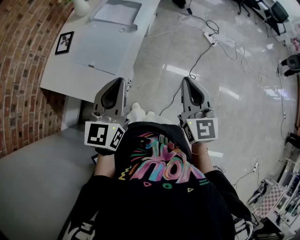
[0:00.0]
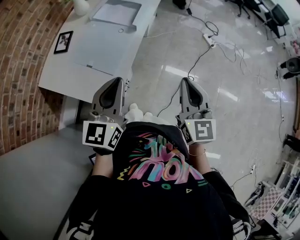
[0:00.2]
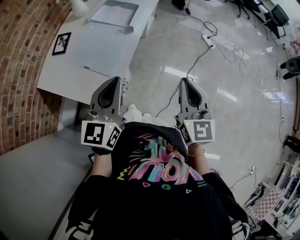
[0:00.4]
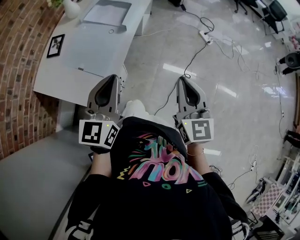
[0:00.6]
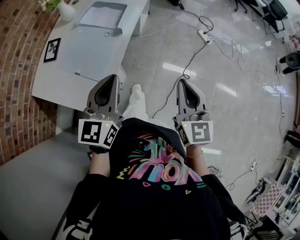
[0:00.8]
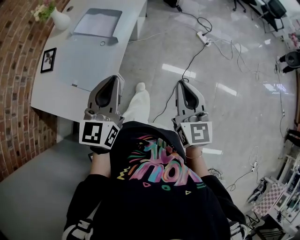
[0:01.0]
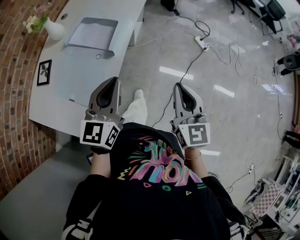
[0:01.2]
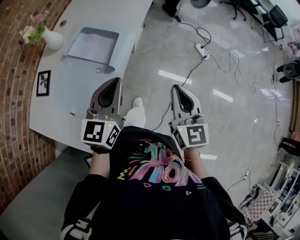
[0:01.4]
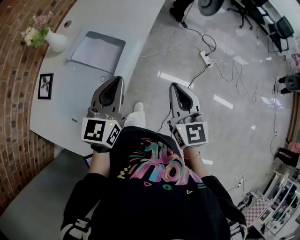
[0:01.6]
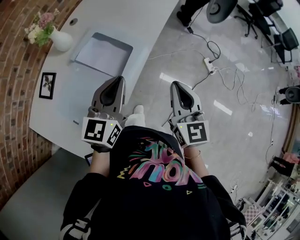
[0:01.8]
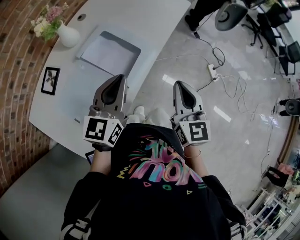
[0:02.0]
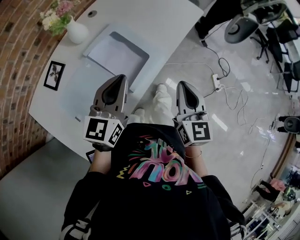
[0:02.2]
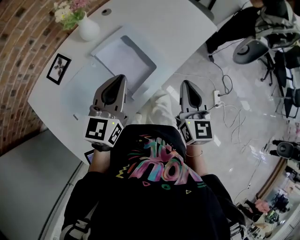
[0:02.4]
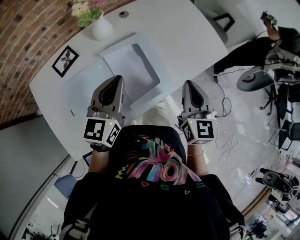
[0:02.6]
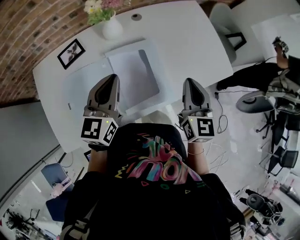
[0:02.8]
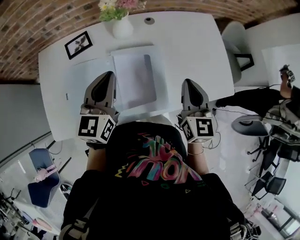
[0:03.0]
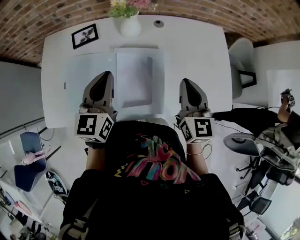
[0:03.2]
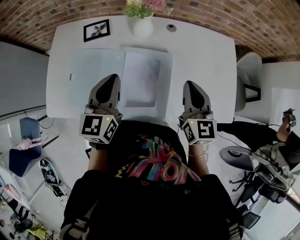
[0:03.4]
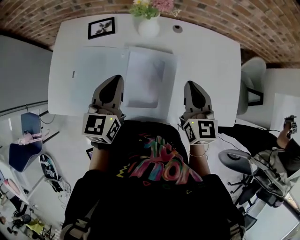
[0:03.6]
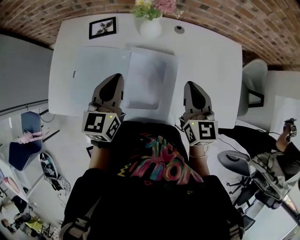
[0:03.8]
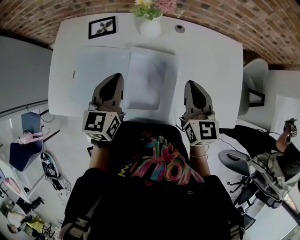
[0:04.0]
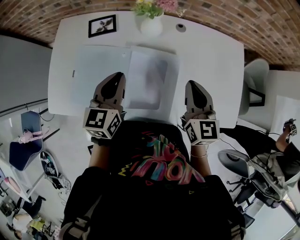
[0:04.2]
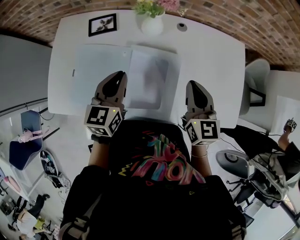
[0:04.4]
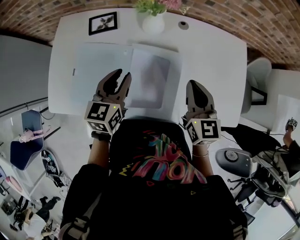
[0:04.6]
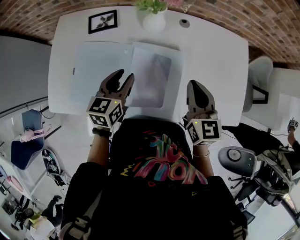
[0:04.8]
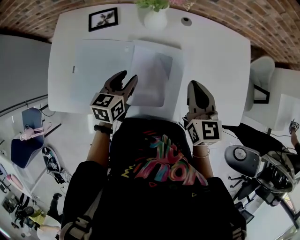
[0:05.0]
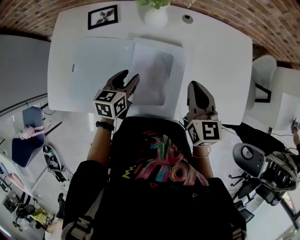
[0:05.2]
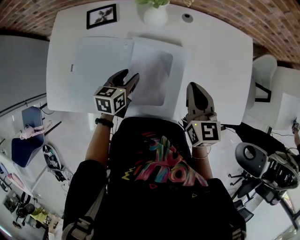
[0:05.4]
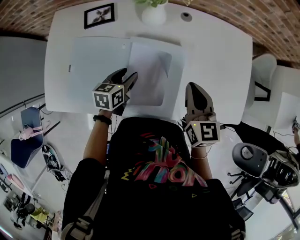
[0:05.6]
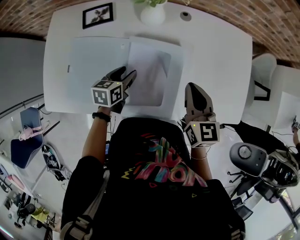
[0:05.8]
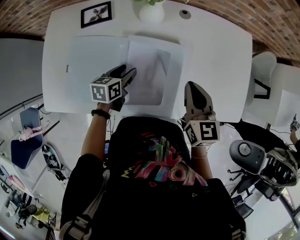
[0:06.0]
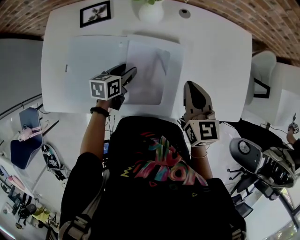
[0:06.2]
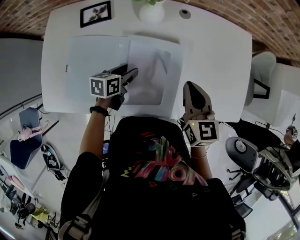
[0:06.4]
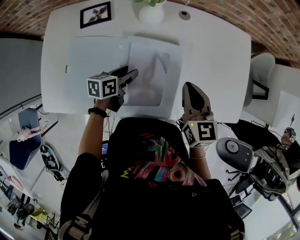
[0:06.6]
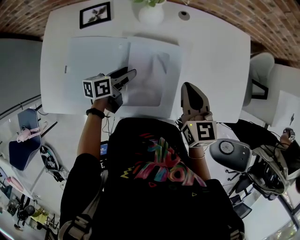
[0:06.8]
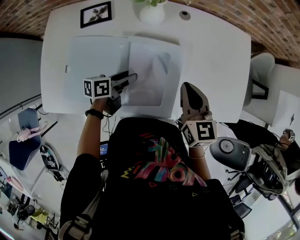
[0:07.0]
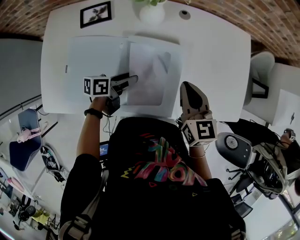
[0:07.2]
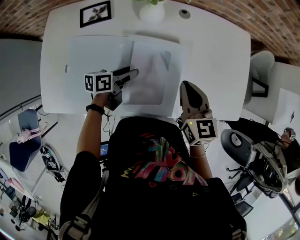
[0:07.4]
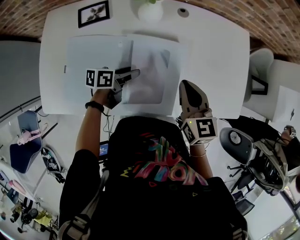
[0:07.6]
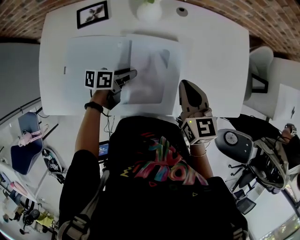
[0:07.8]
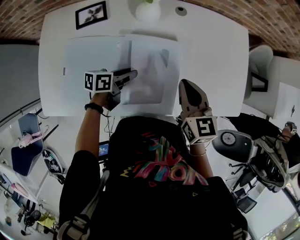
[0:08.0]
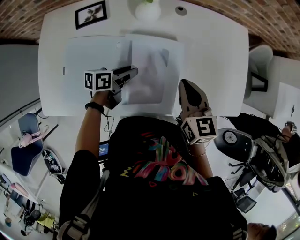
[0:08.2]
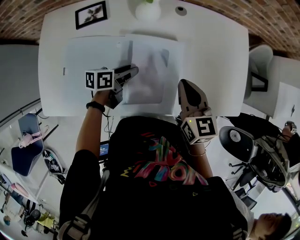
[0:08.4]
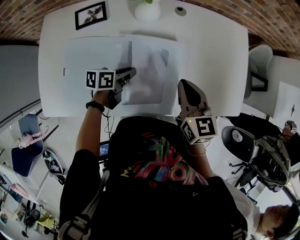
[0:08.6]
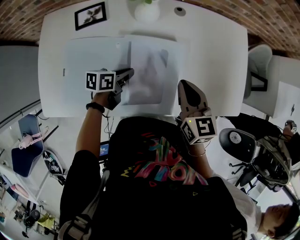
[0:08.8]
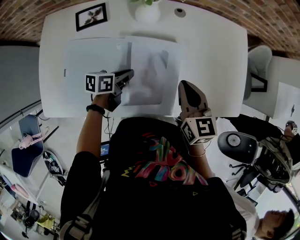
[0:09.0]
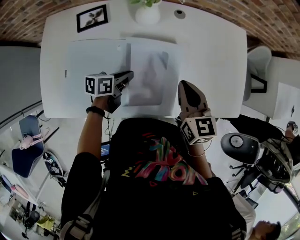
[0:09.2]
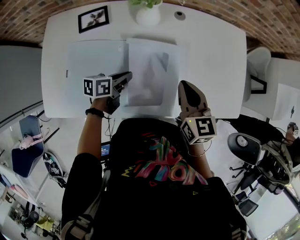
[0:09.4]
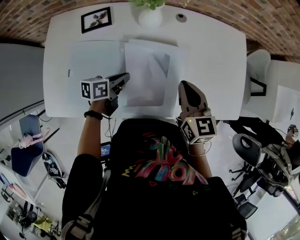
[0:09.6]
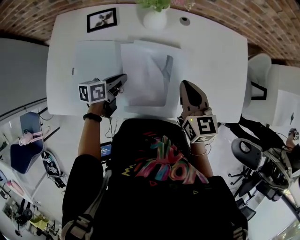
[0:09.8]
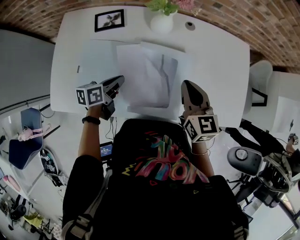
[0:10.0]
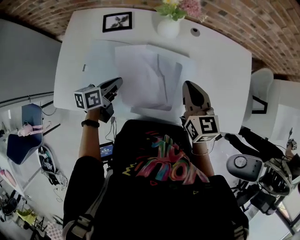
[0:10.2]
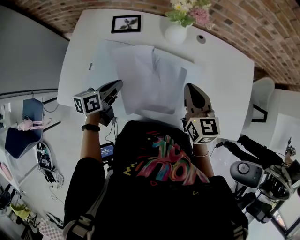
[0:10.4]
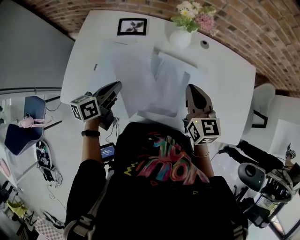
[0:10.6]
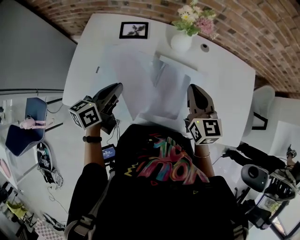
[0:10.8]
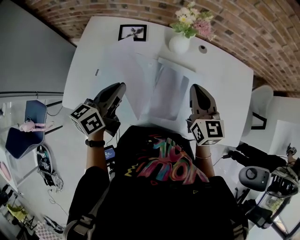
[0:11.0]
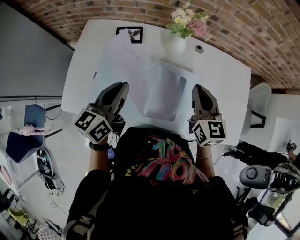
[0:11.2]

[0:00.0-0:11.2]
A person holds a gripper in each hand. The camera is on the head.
0:00.0 to 0:01.6: The grippers both shift forward by approximately 35 cm.
0:01.6 to 0:03.2: The left gripper moves roughly 20 cm, and changes its angle by about 70 degrees, while the right gripper shifts by about 40 cm, and changes its angle by about 60 degrees.
0:03.2 to 0:04.8: The left gripper is displaced downward by approximately 10 cm, and opens. Meanwhile the right gripper goes roughly 5 cm forward.
0:04.8 to 0:06.4: The left gripper moves downward, roughly 15 cm, and turns by roughly 30 degrees.
0:08.0 to 0:09.6: The left gripper closes up.
0:09.6 to 0:11.2: The right gripper travels upward and to the left by roughly 10 cm. Meanwhile the left gripper travels upward and to the left by roughly 25 cm, and swivels about 40 degrees.

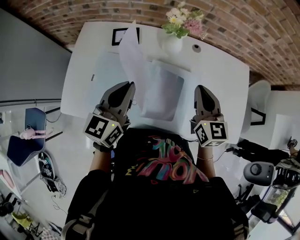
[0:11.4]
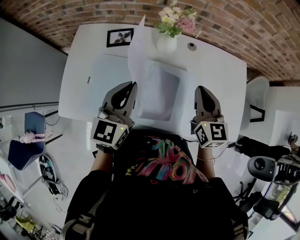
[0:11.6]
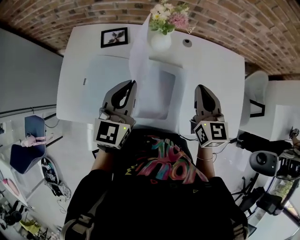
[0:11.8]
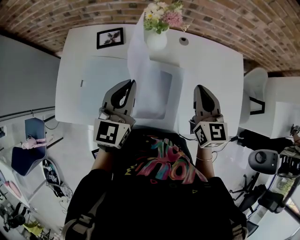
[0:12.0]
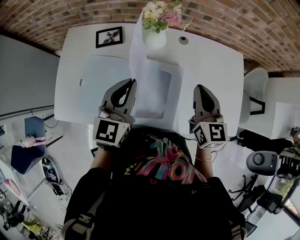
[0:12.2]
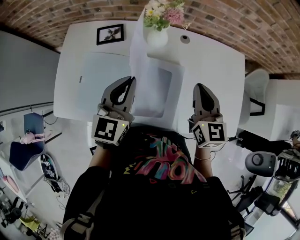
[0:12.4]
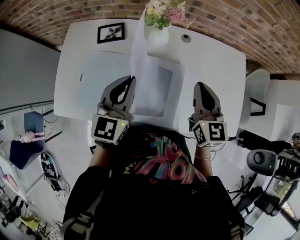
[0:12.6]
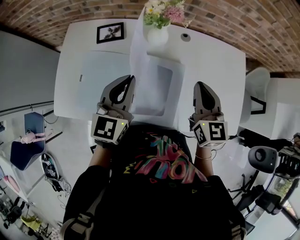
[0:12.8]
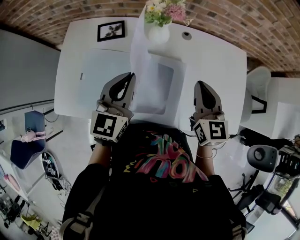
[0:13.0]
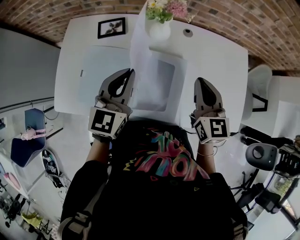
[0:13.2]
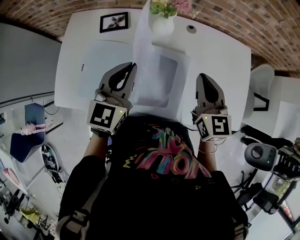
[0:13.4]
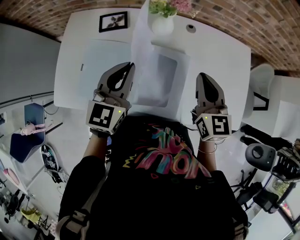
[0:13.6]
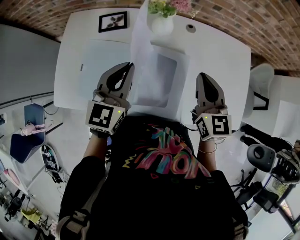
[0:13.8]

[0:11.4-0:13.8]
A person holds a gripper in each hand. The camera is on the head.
0:11.4 to 0:12.6: Both grippers travel together to the right, roughly 5 cm.
0:12.6 to 0:13.8: There are only small adjustments of the grippers.

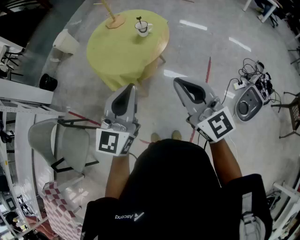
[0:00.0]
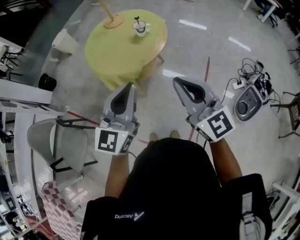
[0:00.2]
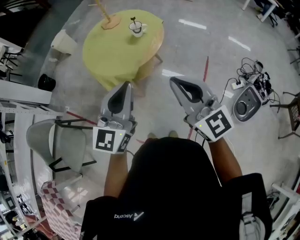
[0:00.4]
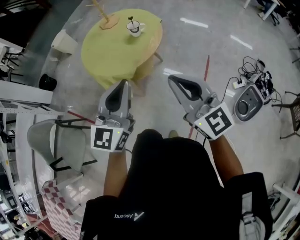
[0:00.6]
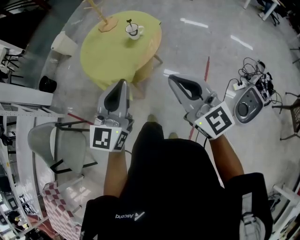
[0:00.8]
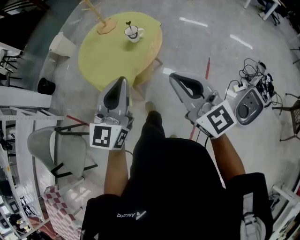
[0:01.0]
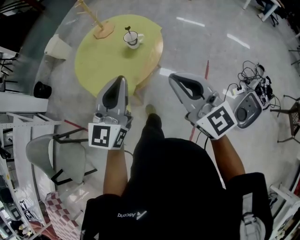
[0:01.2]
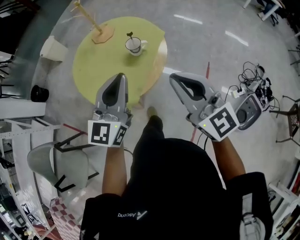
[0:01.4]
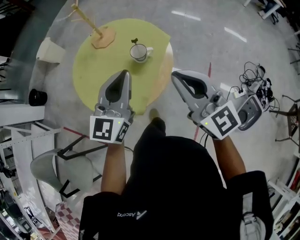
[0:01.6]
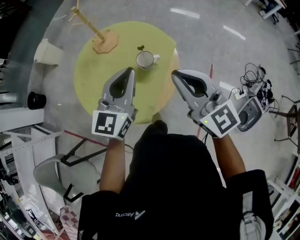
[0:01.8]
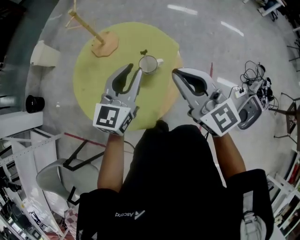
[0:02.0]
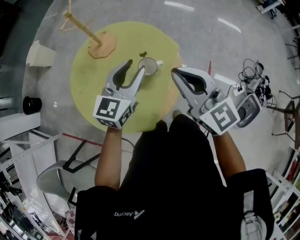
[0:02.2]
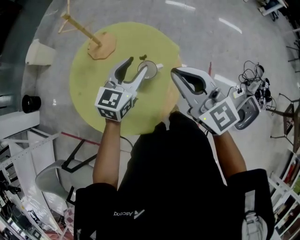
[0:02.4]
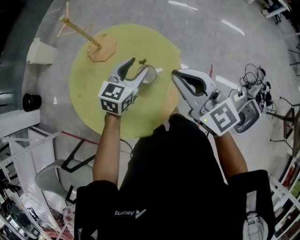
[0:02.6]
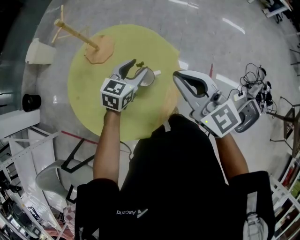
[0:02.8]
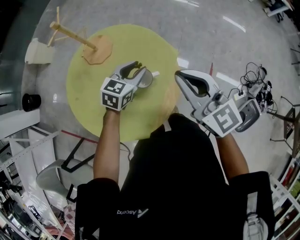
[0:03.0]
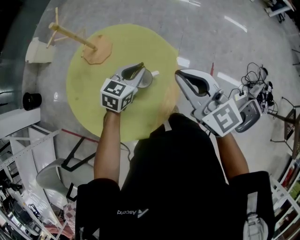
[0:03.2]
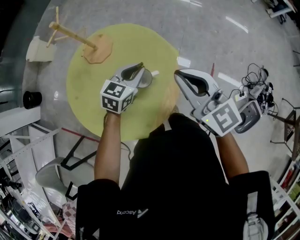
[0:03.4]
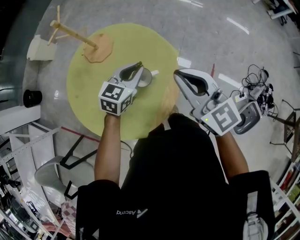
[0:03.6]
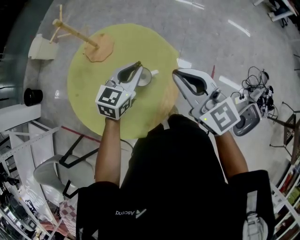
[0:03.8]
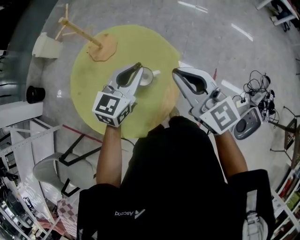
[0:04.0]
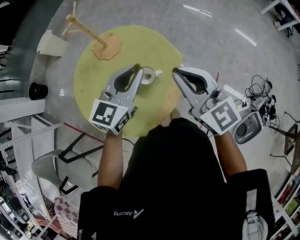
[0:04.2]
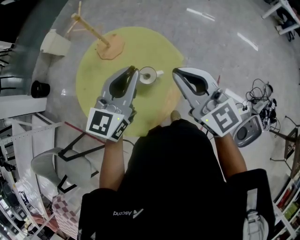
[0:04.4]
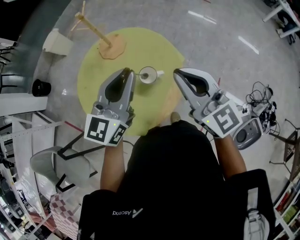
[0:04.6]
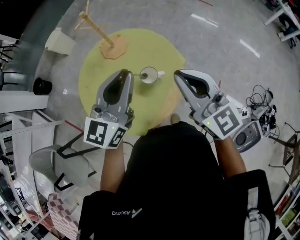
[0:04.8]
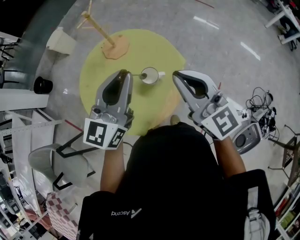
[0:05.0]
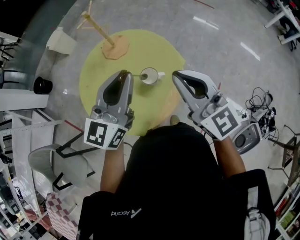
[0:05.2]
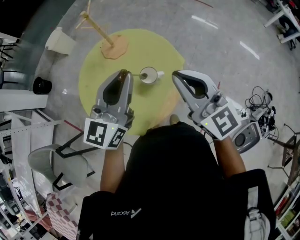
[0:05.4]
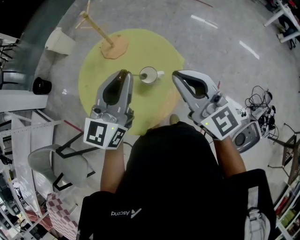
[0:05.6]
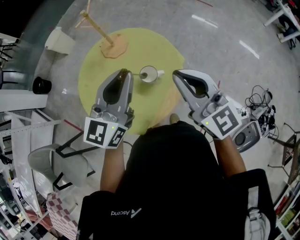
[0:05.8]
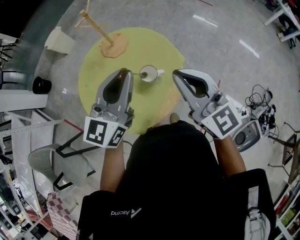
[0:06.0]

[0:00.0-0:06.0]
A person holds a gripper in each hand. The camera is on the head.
0:00.0 to 0:01.6: The grippers both shift forward by about 35 cm.
0:01.6 to 0:03.0: The left gripper moves forward and downward, approximately 30 cm, angles its fingers downward, by roughly 30 degrees, and opens its fingers, while the right gripper goes about 20 cm forward.
0:03.0 to 0:04.4: The left gripper is displaced upward by approximately 20 cm, swivels roughly 30 degrees, and closes; the right gripper shifts by about 5 cm.
0:04.4 to 0:06.0: The left gripper ends up some 5 cm from where it was.

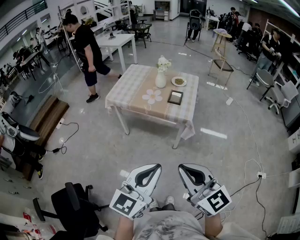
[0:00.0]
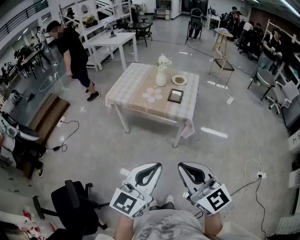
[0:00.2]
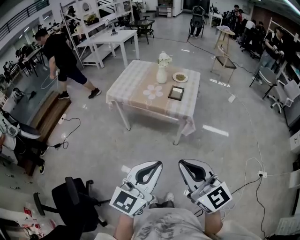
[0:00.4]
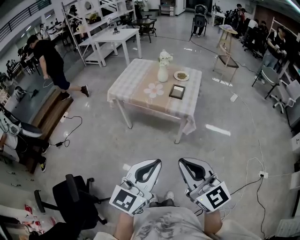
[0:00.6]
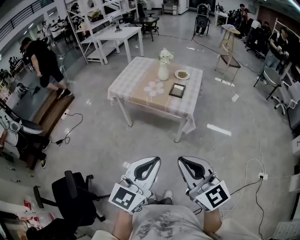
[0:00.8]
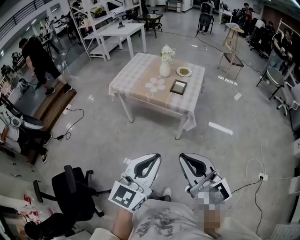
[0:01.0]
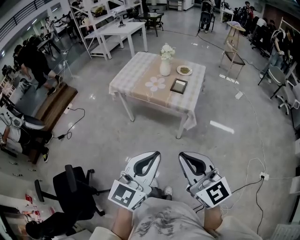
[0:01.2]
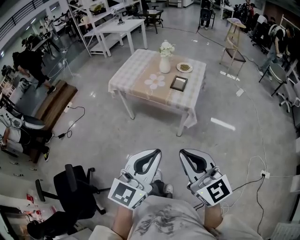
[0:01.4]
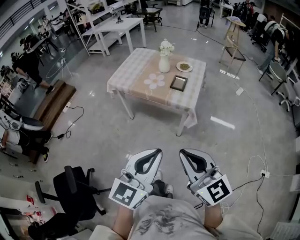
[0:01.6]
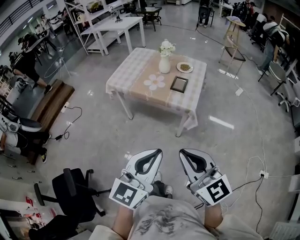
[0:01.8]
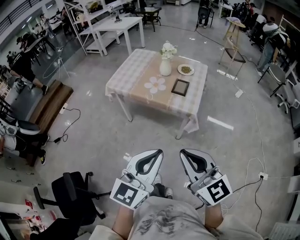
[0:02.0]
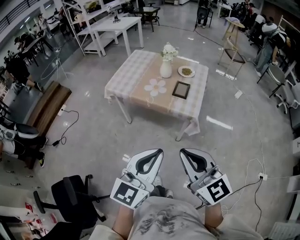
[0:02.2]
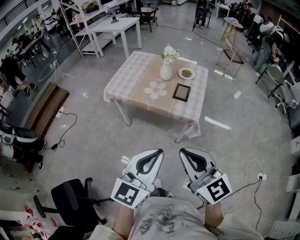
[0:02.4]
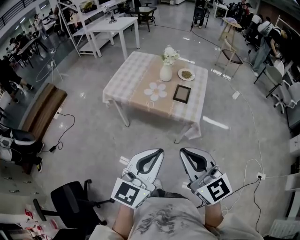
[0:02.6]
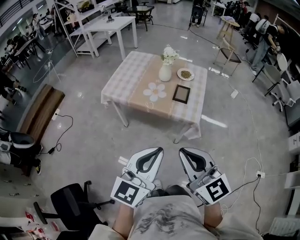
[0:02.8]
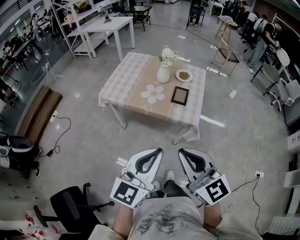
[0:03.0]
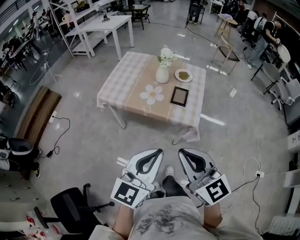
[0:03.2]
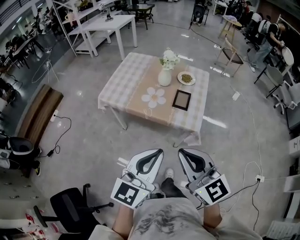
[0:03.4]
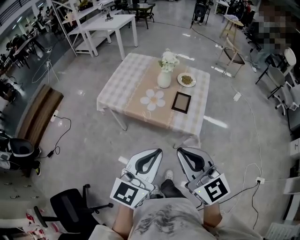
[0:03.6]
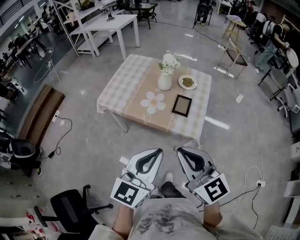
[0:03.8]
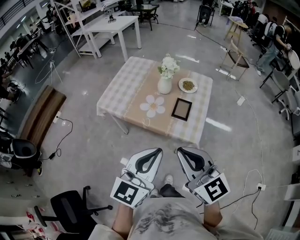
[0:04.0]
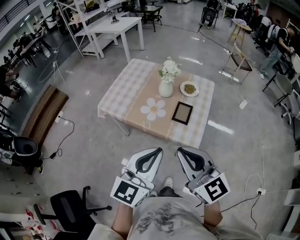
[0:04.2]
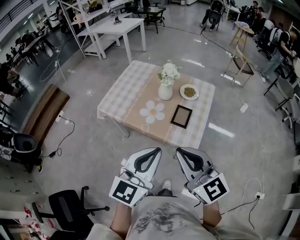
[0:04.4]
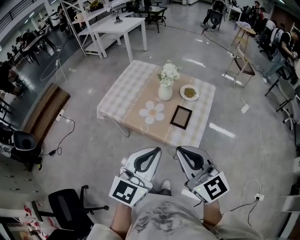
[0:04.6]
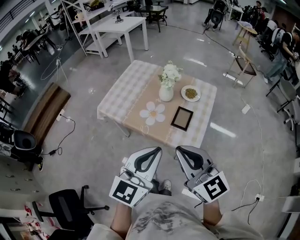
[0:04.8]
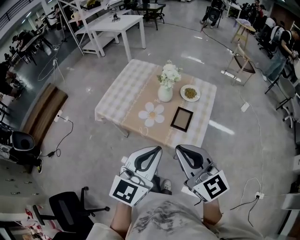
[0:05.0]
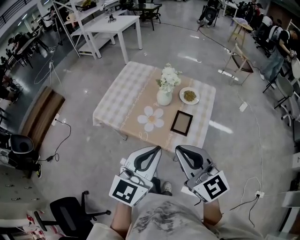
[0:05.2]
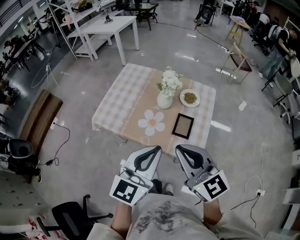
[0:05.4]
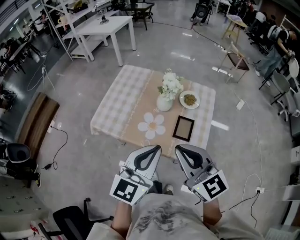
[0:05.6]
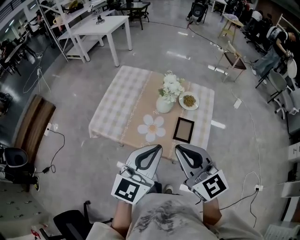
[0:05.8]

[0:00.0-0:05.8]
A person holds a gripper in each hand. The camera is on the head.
0:00.0 to 0:01.4: The two grippers go approximately 5 cm to the right.
0:01.4 to 0:02.8: The grippers both shift forward and to the left by about 20 cm.
0:02.8 to 0:04.4: Both grippers travel together forward, roughly 20 cm.
0:04.4 to 0:05.8: Both grippers move forward, roughly 15 cm.
